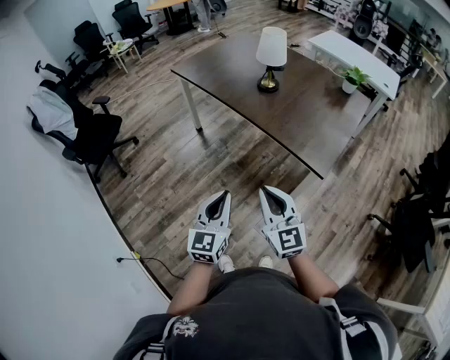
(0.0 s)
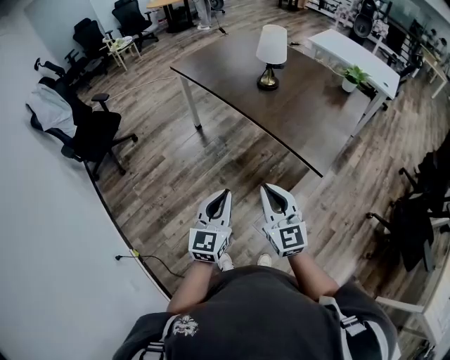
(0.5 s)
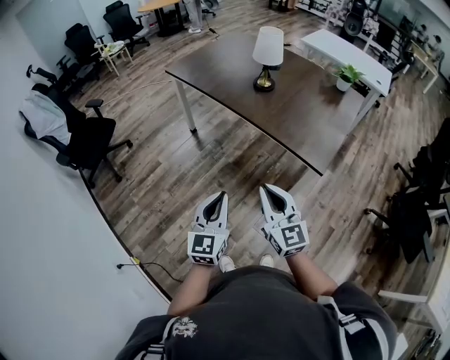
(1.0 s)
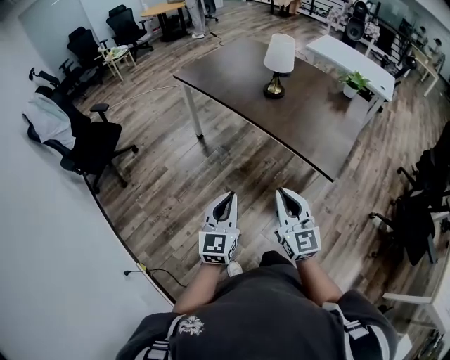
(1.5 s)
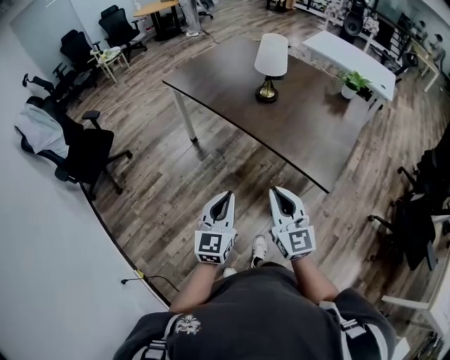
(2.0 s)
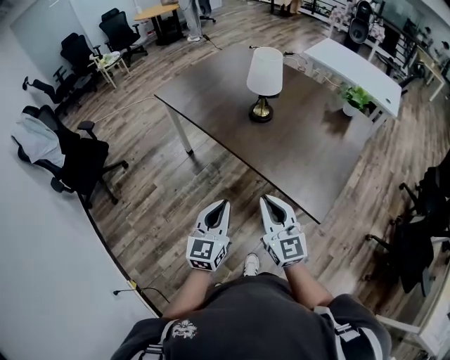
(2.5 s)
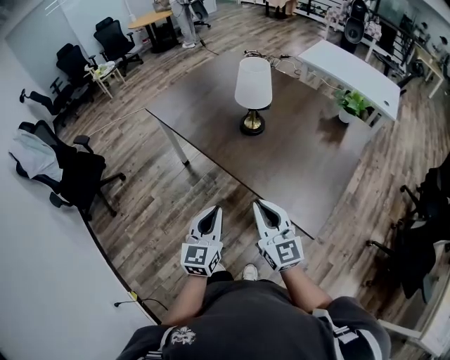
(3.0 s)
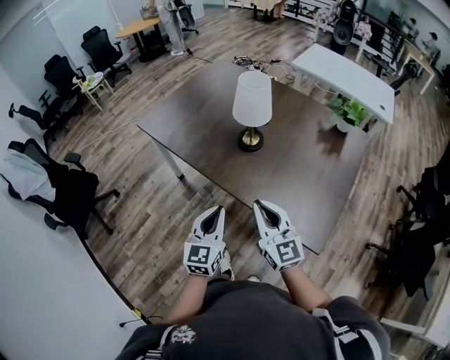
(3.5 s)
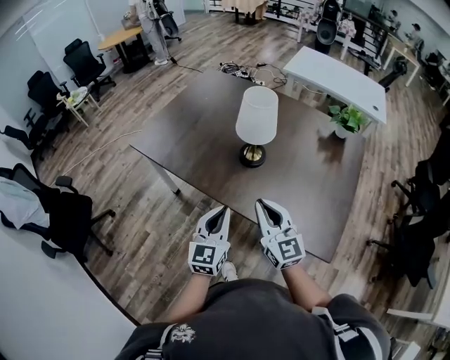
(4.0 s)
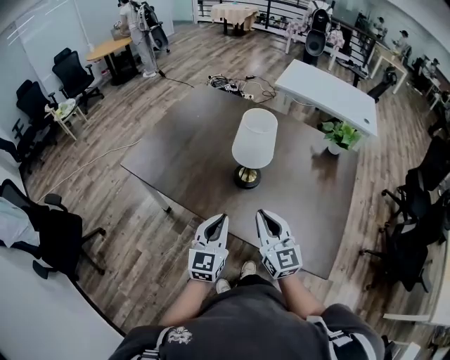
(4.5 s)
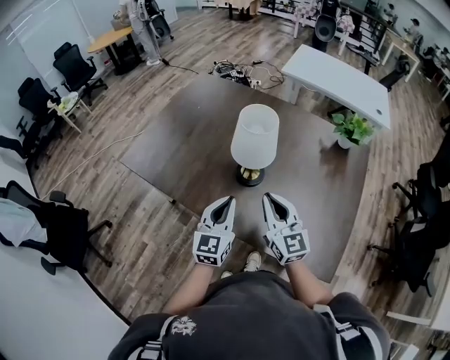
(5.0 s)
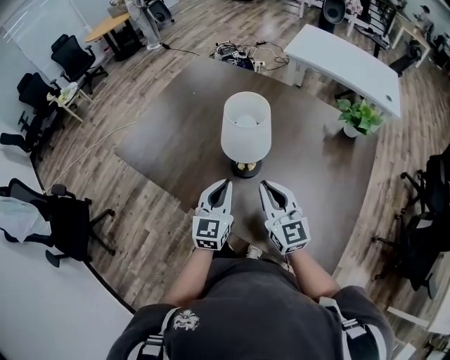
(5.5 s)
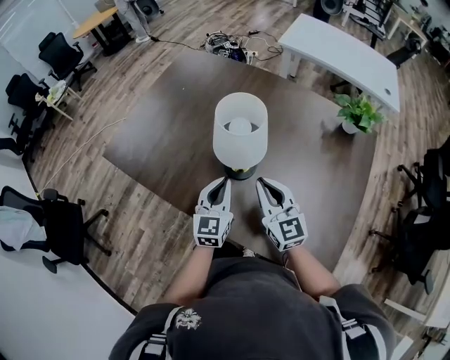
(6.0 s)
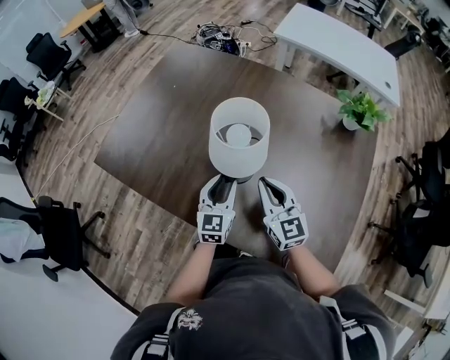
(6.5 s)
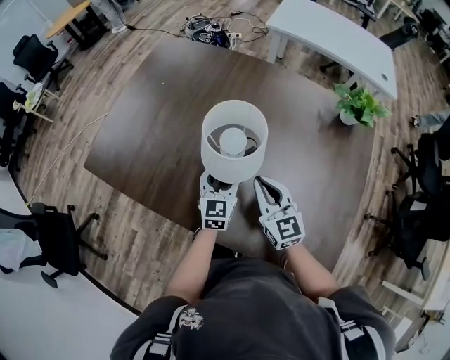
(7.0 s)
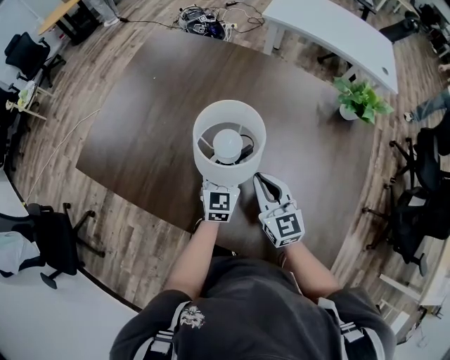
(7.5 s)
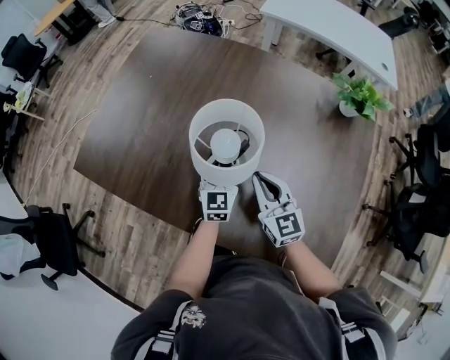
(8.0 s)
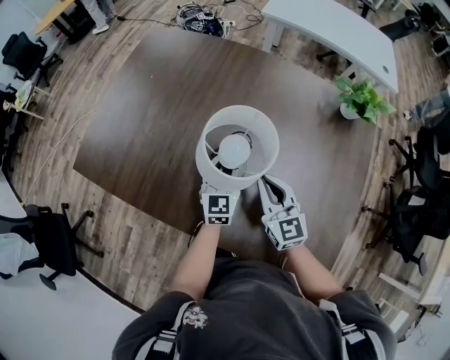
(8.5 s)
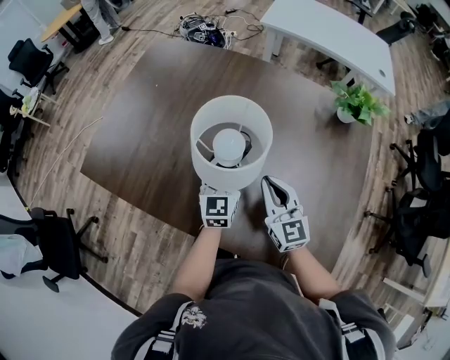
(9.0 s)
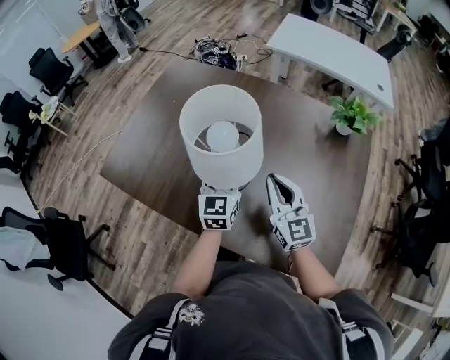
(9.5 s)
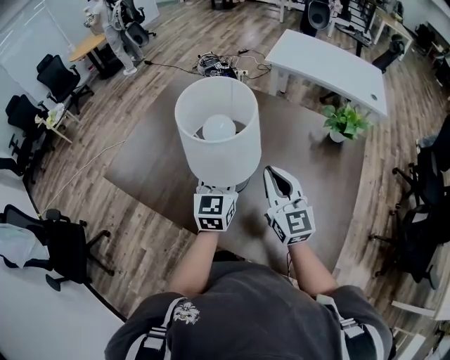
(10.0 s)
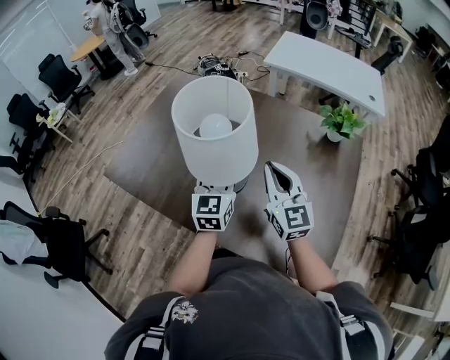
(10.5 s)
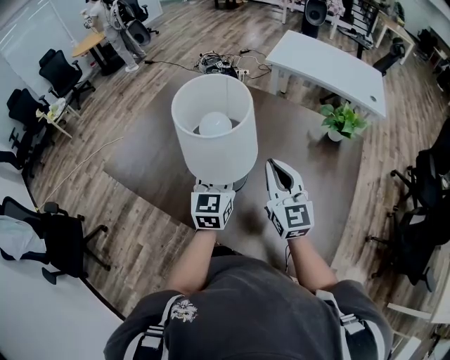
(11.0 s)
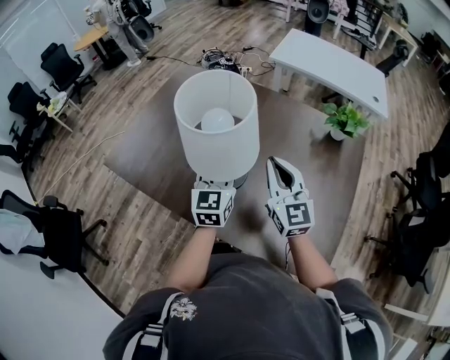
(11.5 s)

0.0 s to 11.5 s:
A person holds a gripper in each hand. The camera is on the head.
0.0 to 2.0 s: The two grippers go about 10 cm forward.
2.0 to 4.0 s: Both grippers move forward, some 35 cm.
4.0 to 6.0 s: The two grippers go roughly 25 cm forward.
6.0 to 7.5 s: The right gripper moves downward and forward, some 10 cm. Meanwhile the left gripper shifts about 15 cm forward, downward and to the right, and opens its fingers.
7.5 to 9.5 s: Both grippers travel together upward, approximately 10 cm. The left gripper closes up.
9.5 to 11.5 s: The two grippers go roughly 5 cm upward.

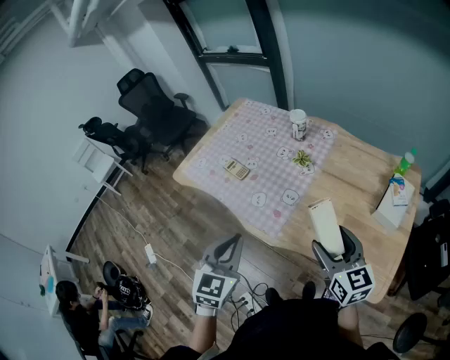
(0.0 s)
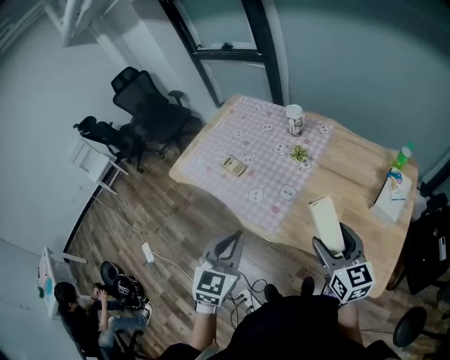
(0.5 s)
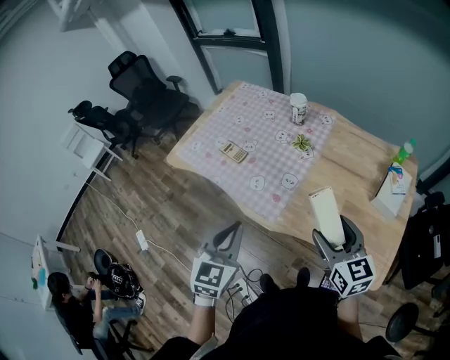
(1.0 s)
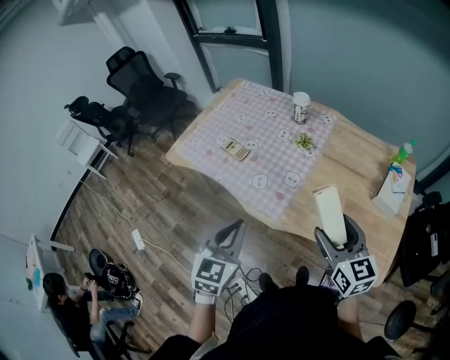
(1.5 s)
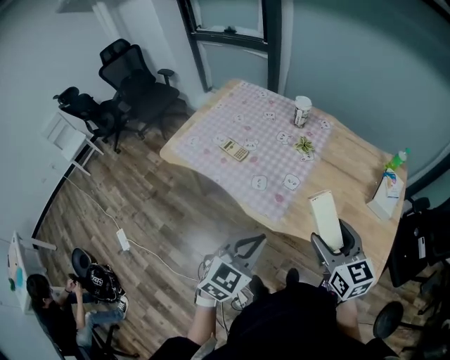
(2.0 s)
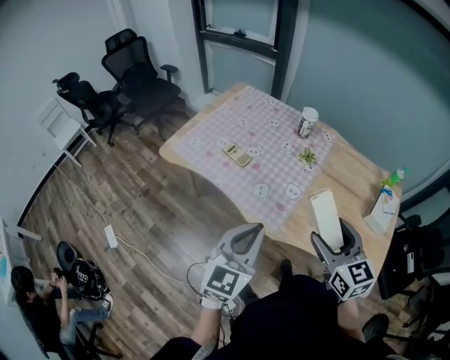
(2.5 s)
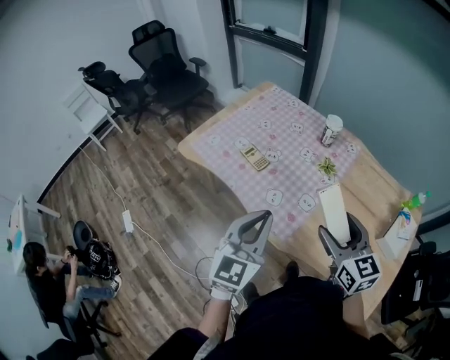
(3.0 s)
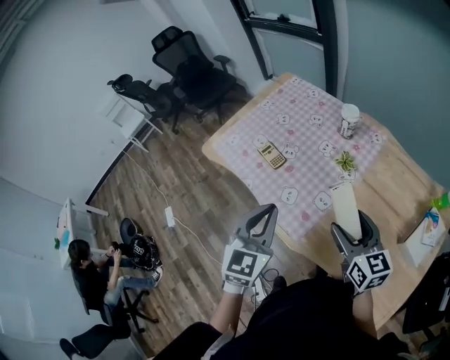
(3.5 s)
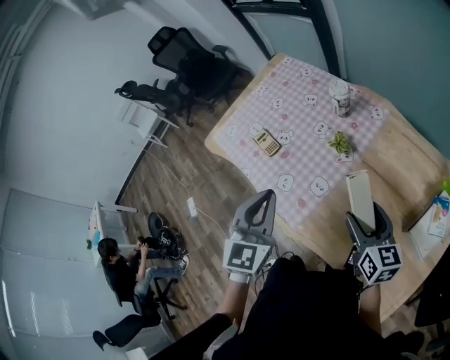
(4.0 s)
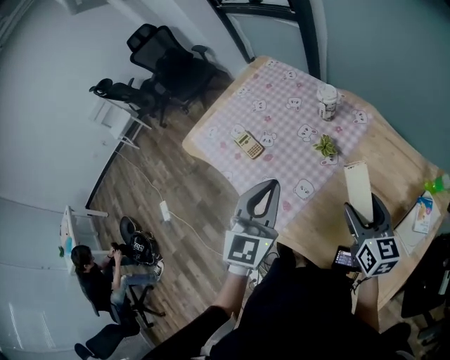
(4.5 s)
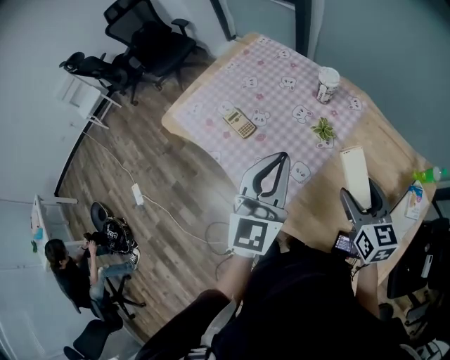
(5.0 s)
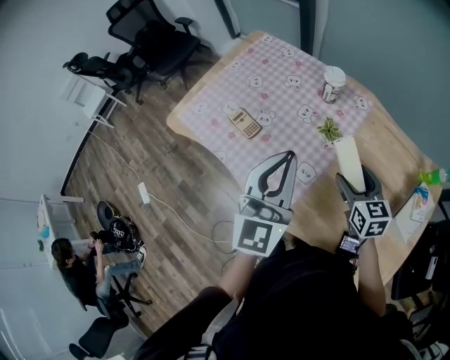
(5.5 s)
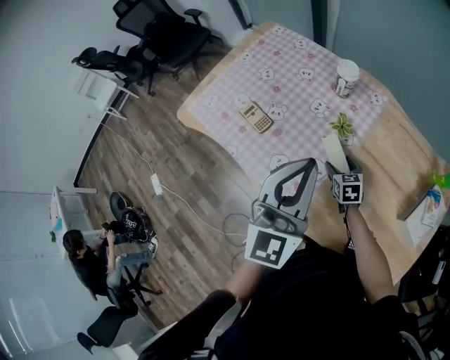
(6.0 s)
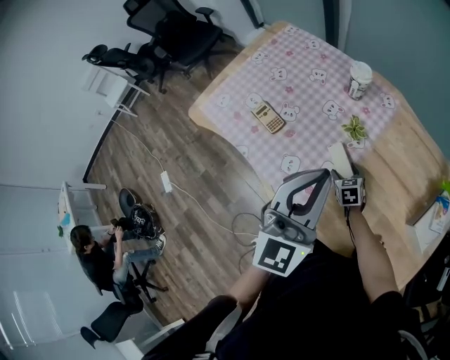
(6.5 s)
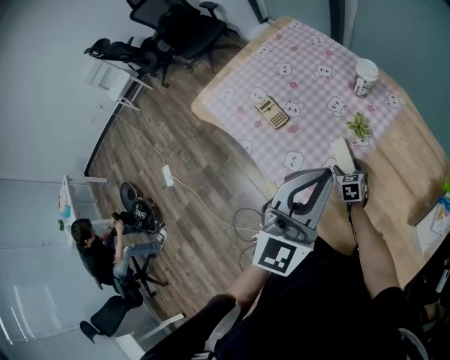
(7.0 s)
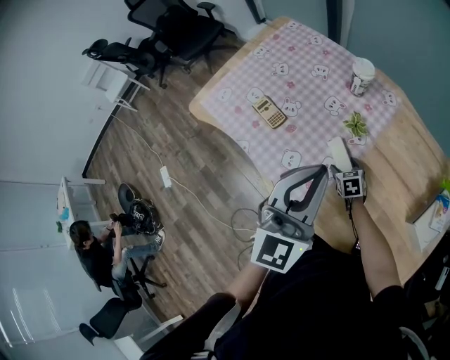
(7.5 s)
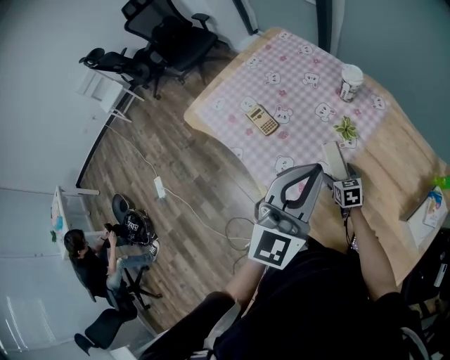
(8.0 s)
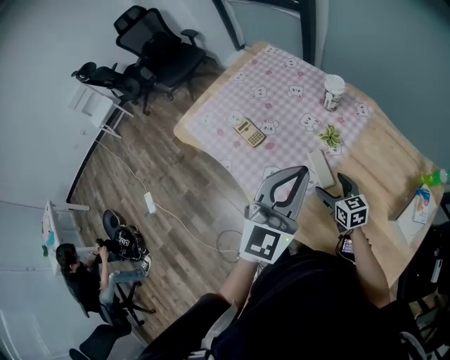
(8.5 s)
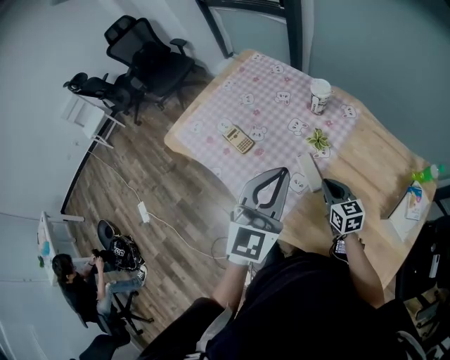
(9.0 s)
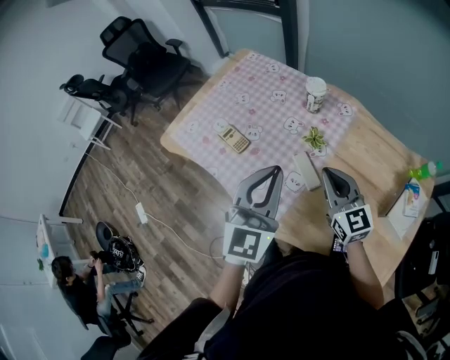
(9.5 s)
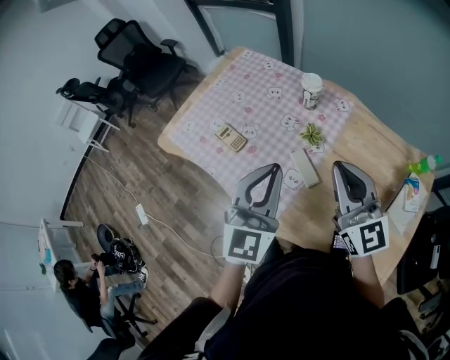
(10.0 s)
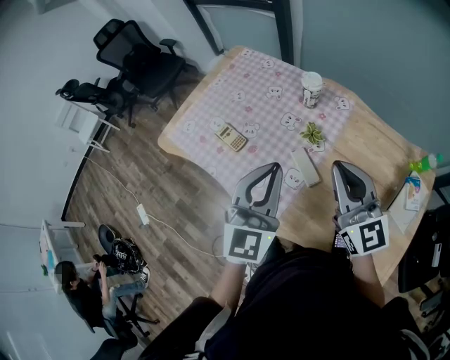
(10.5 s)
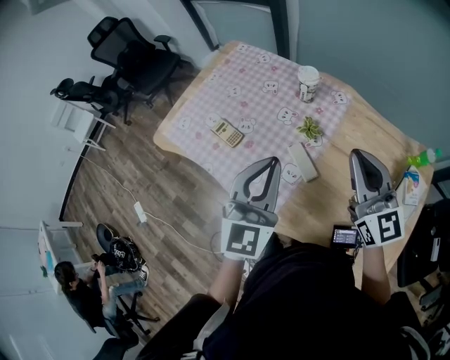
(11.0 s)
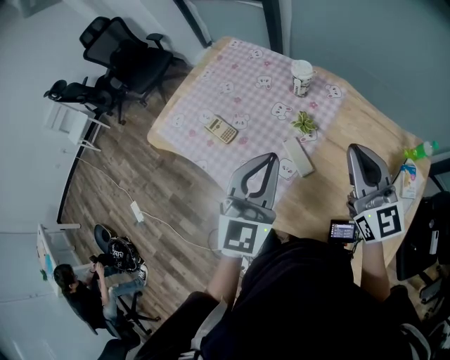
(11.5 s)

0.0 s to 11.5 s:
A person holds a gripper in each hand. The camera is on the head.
0.0 to 2.0 s: The right gripper shifts about 10 cm to the left. The left gripper travels downward by roughly 5 cm, and swivels roughly 20 degrees.
2.0 to 4.0 s: The left gripper moves roughly 25 cm, and turns by about 40 degrees, while the right gripper shifts by roughly 25 cm, and swivels approximately 20 degrees.
4.0 to 6.0 s: The left gripper ends up approximately 5 cm from where it was, and turns by roughly 30 degrees; the right gripper travels downward, forward and to the left by about 25 cm, and changes its angle by some 30 degrees.
6.0 to 7.5 s: The right gripper goes some 5 cm downward.
7.5 to 9.5 s: The right gripper travels upward by roughly 30 cm, angles its fingers upward, by approximately 40 degrees, and closes its fingers.
9.5 to 11.5 s: The right gripper travels upward and to the right by about 10 cm.

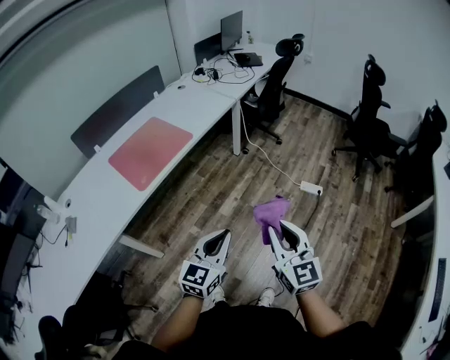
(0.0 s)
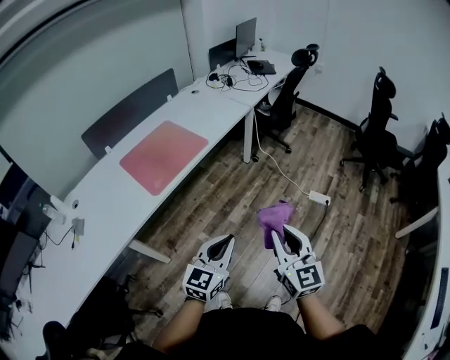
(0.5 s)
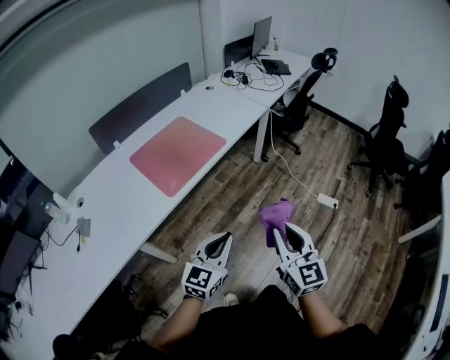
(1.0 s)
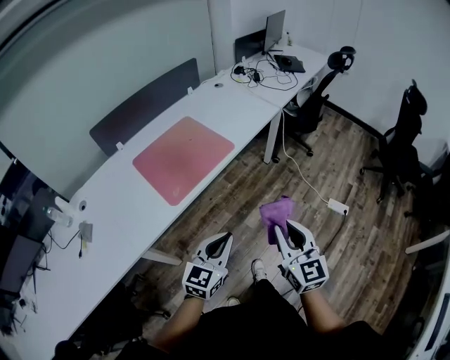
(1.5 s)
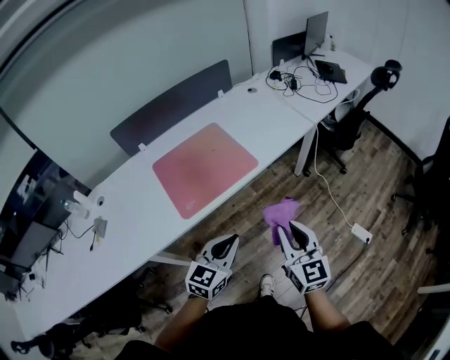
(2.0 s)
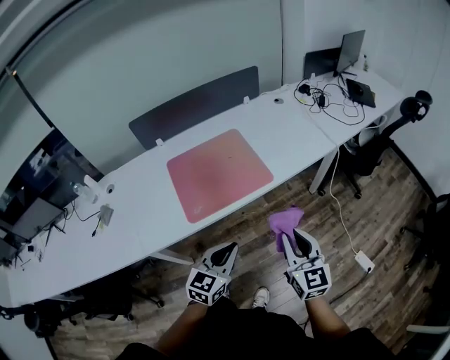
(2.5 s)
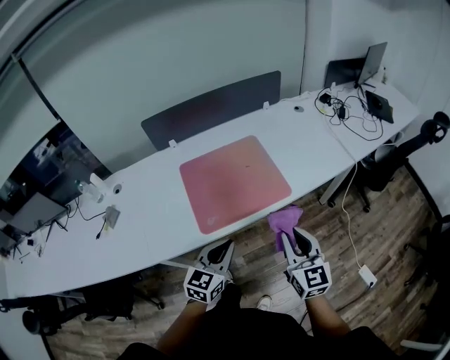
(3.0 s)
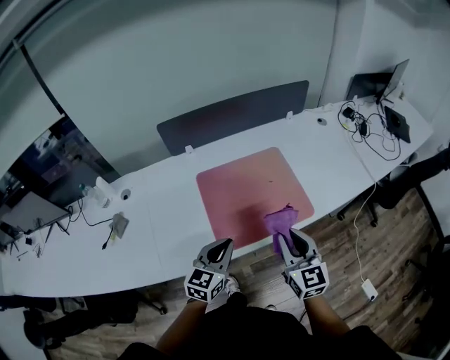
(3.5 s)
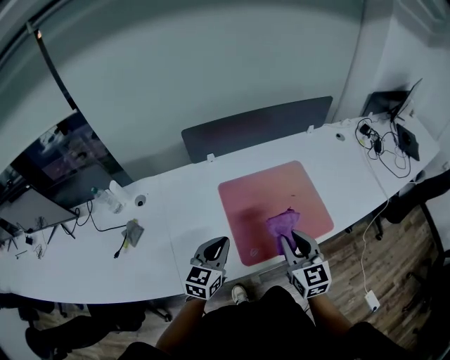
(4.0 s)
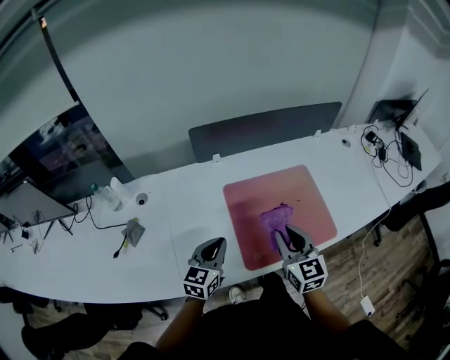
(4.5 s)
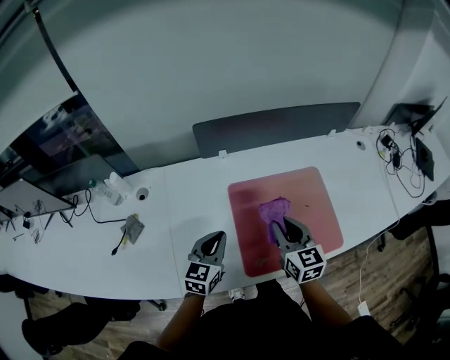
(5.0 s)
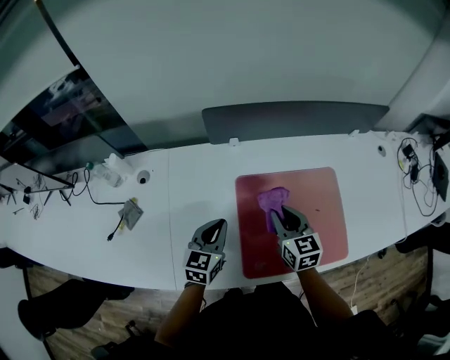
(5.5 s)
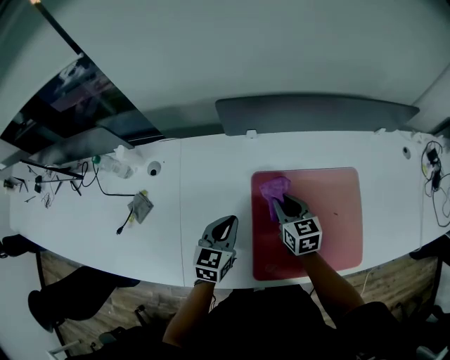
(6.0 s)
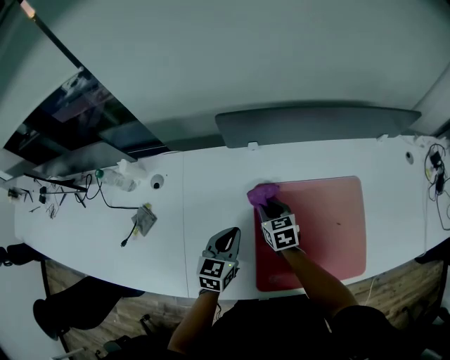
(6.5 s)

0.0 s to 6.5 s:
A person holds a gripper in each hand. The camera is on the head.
0.0 to 2.0 s: Both grippers move forward and to the left, some 30 cm. The right gripper swivels approximately 20 degrees.
2.0 to 4.5 s: Both grippers are carried to the left and forward, some 40 cm. The left gripper rotates approximately 30 degrees; the right gripper rotates some 20 degrees.
4.5 to 6.5 s: The left gripper goes roughly 15 cm forward and downward. The right gripper is displaced forward, downward and to the left by approximately 30 cm, and turns by about 30 degrees.
